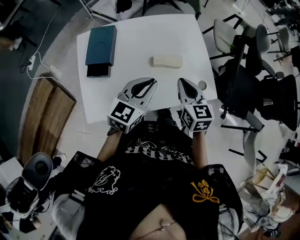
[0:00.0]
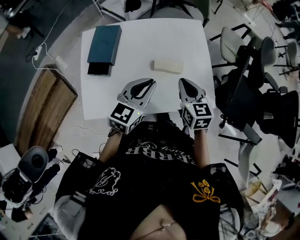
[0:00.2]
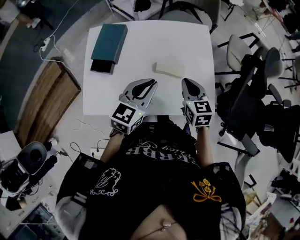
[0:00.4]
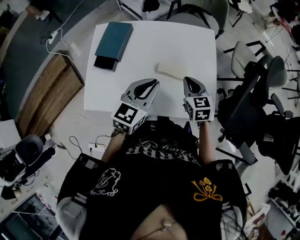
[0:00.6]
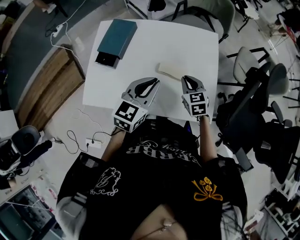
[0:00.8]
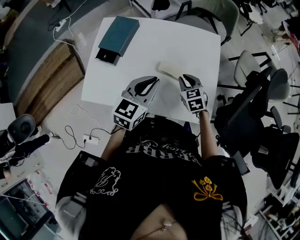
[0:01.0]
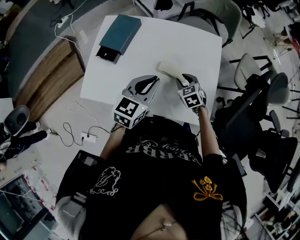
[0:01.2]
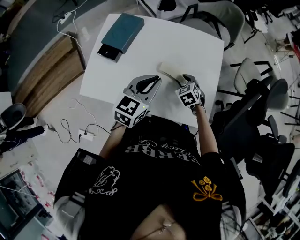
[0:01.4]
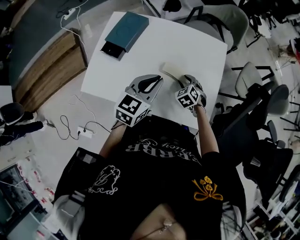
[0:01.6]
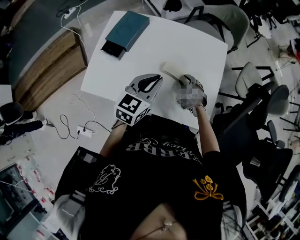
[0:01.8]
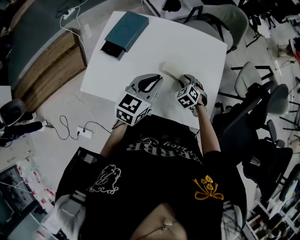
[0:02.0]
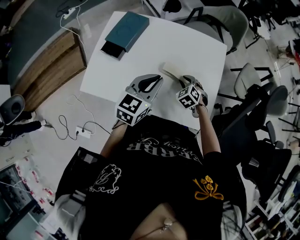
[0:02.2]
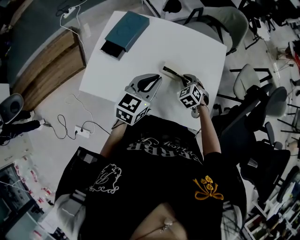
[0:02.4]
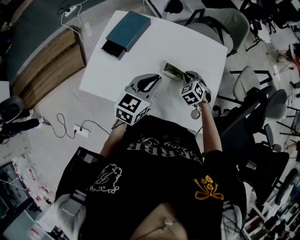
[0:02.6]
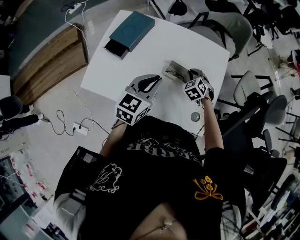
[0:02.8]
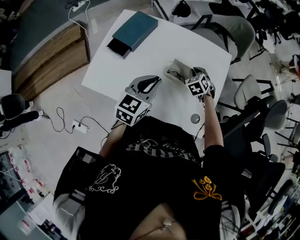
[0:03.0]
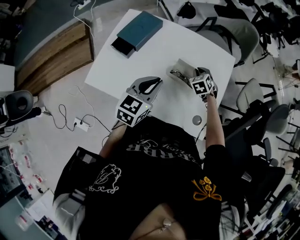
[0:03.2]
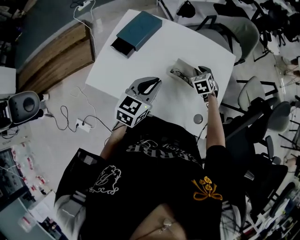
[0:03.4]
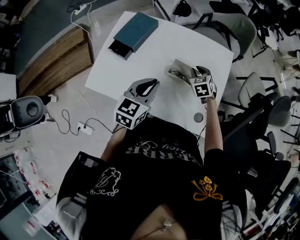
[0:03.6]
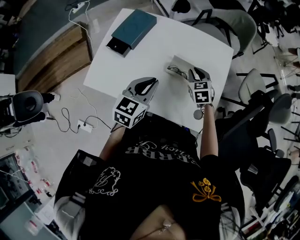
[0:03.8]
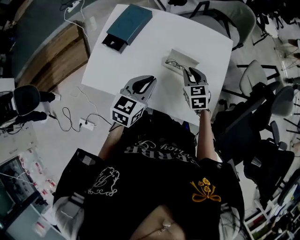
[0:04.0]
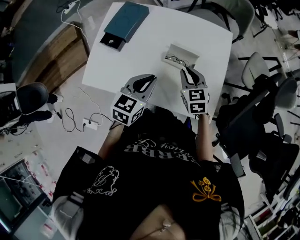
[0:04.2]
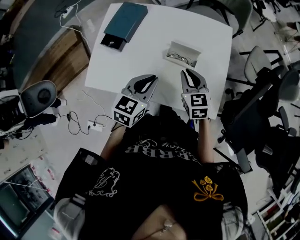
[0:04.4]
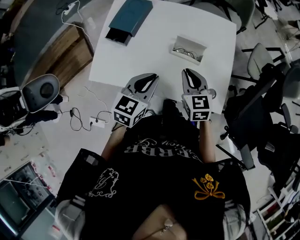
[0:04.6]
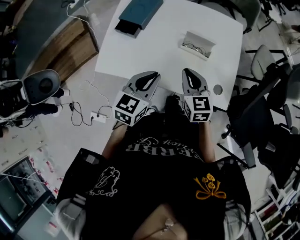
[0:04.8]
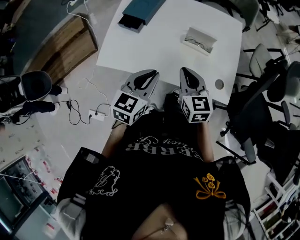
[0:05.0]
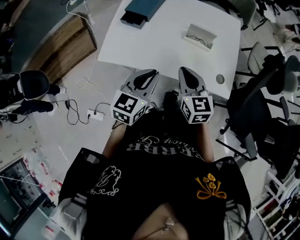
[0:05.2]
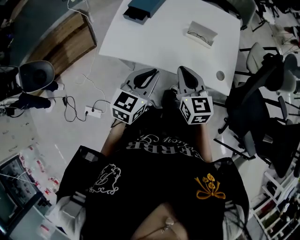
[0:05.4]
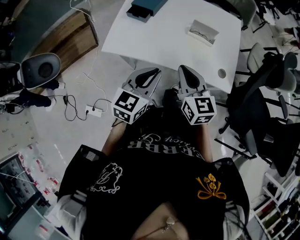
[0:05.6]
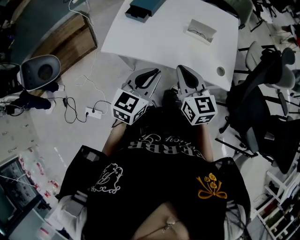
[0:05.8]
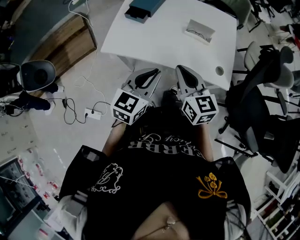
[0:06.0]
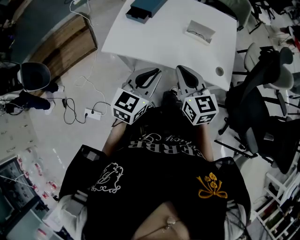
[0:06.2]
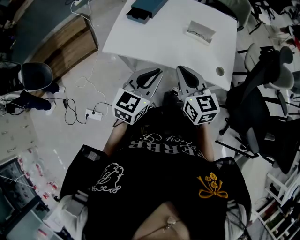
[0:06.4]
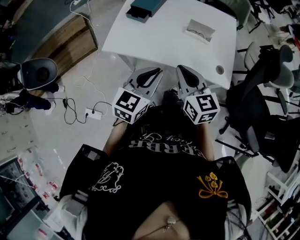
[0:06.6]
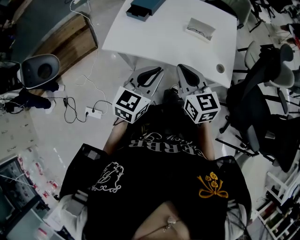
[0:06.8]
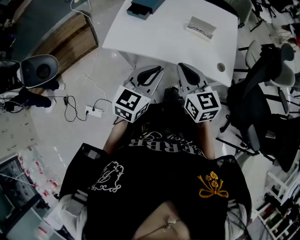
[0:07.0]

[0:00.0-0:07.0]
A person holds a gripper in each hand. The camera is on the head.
0:00.0 to 0:01.4: The right gripper shifts approximately 20 cm downward, turns by roughly 50 degrees, and opens; the left gripper moves approximately 5 cm, and rotates about 30 degrees.
0:01.4 to 0:02.8: The right gripper moves forward, some 5 cm, and closes up.
0:02.8 to 0:04.2: The right gripper moves backward and upward, about 15 cm, and swivels approximately 40 degrees.
0:04.2 to 0:05.6: The grippers both shift backward and to the left by about 25 cm.
0:05.6 to 0:07.0: The grippers make only small movements.

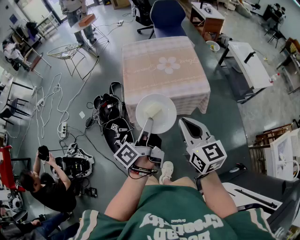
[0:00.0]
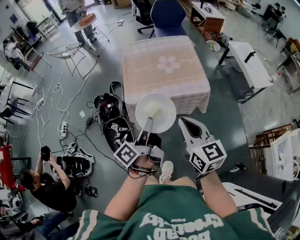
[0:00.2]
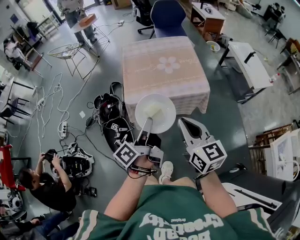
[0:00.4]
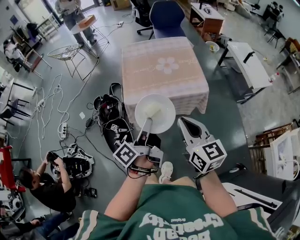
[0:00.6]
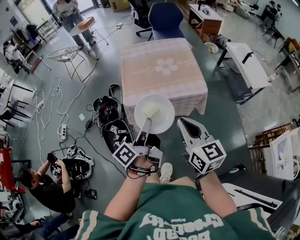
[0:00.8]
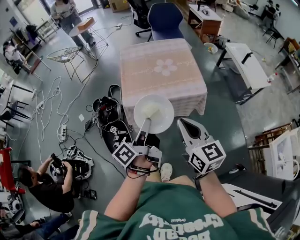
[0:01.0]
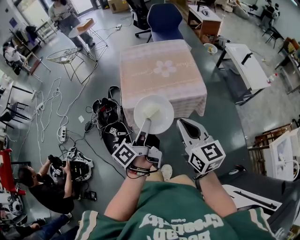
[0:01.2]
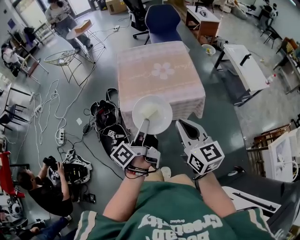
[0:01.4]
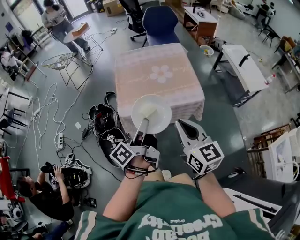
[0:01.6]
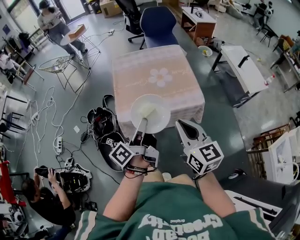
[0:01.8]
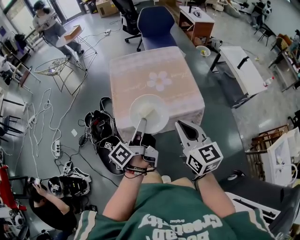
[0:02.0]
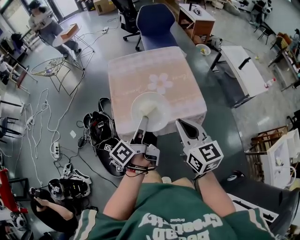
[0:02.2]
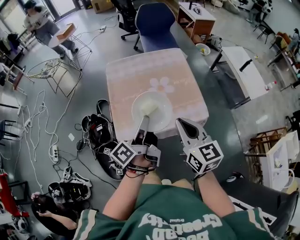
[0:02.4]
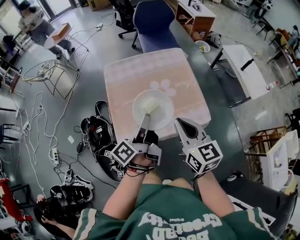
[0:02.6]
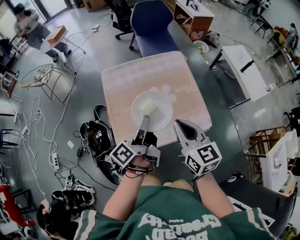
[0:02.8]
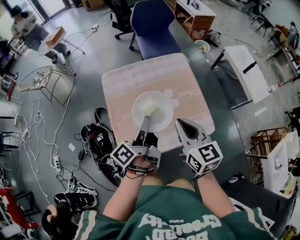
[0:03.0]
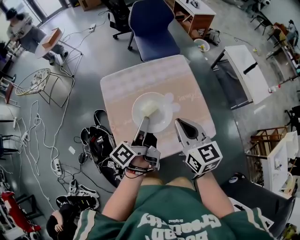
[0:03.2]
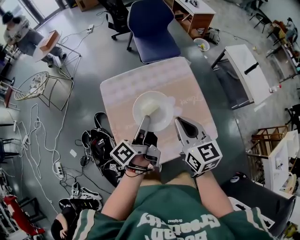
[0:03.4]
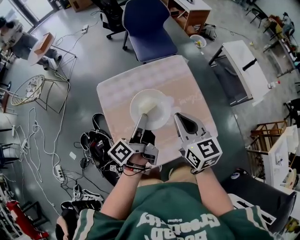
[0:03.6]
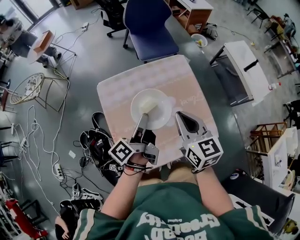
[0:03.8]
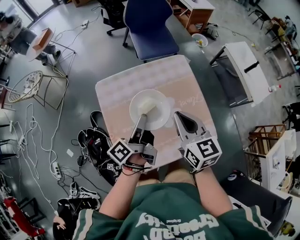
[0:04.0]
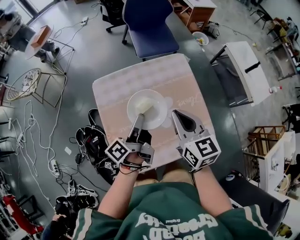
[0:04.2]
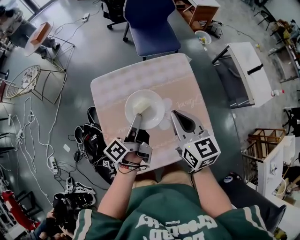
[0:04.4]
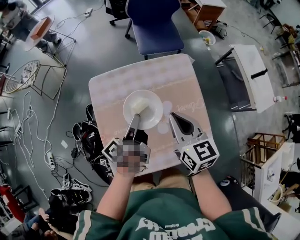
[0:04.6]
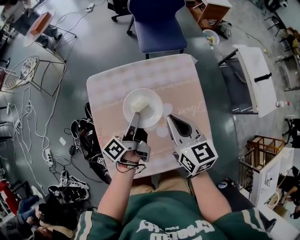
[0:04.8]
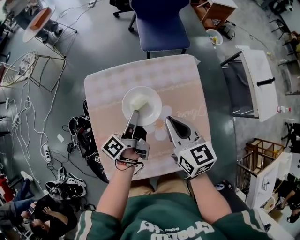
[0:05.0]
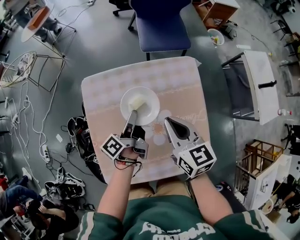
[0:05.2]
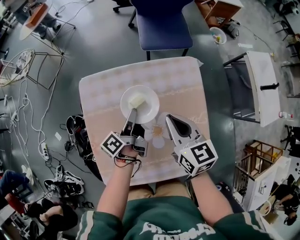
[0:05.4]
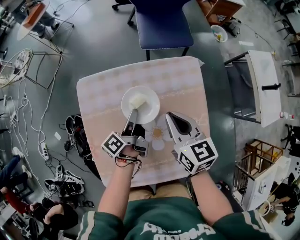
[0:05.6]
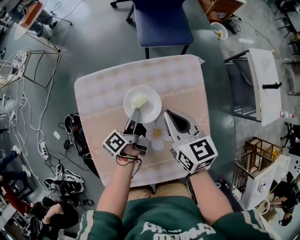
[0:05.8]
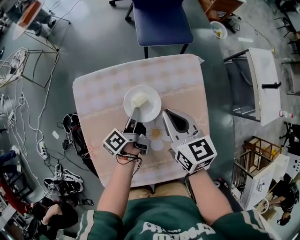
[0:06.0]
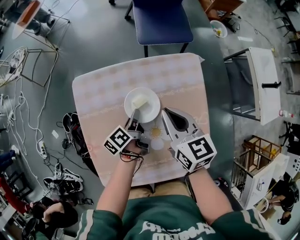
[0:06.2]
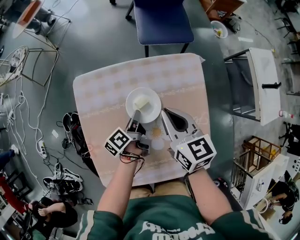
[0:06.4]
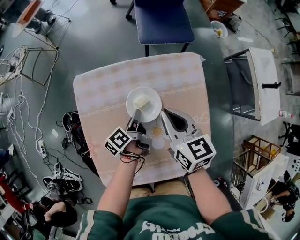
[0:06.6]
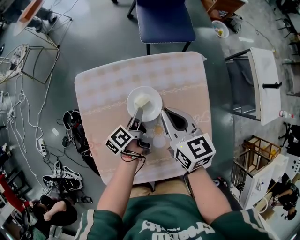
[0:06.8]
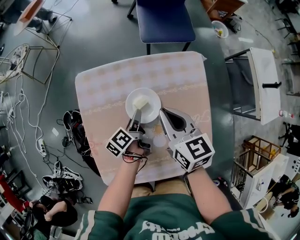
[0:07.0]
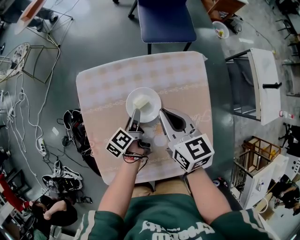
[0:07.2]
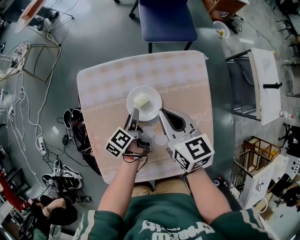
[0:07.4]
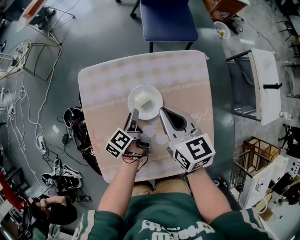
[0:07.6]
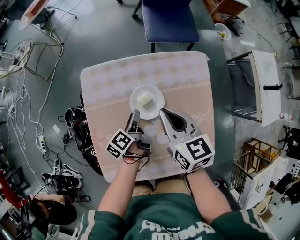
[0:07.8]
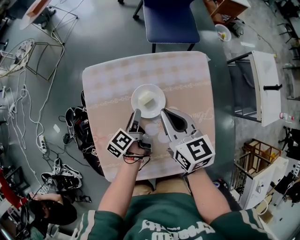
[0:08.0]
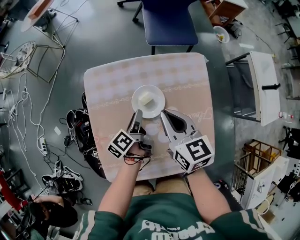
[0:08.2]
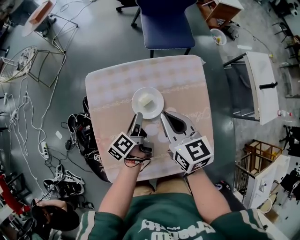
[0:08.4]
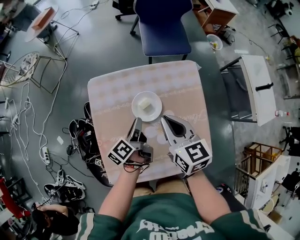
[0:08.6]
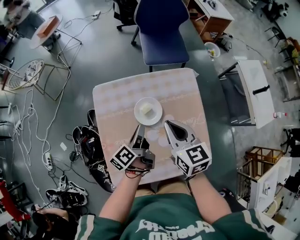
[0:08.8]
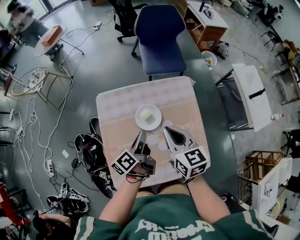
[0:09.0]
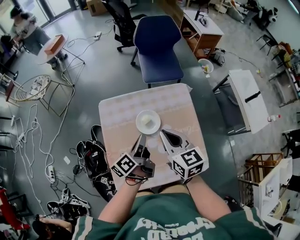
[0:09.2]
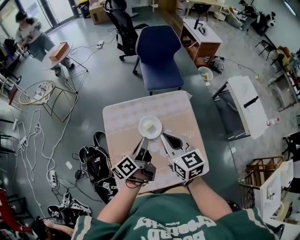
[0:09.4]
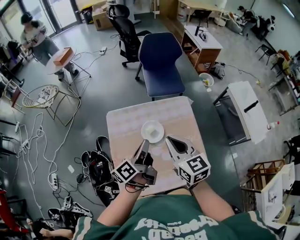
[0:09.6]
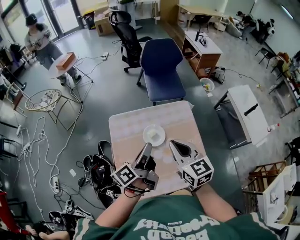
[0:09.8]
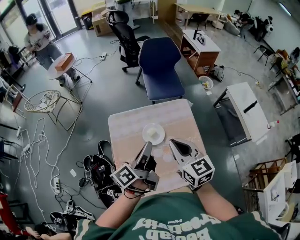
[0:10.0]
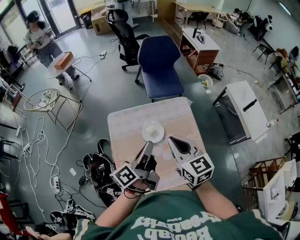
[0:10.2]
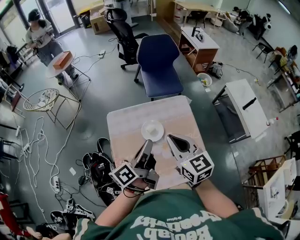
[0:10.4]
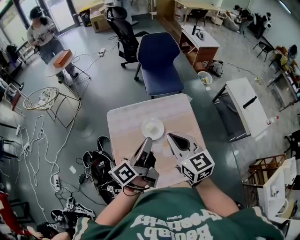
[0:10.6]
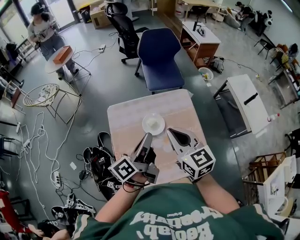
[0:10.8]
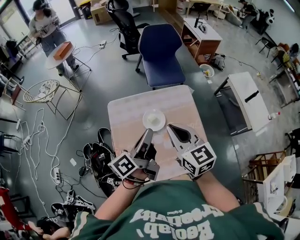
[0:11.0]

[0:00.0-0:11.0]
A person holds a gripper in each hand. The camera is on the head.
0:01.6 to 0:03.2: The right gripper changes place by approximately 35 cm.
0:03.2 to 0:04.8: The right gripper moves some 15 cm.
0:04.8 to 0:06.2: The right gripper shifts by about 10 cm.
0:06.2 to 0:07.8: The right gripper changes place by about 5 cm.
0:07.8 to 0:09.4: The right gripper shifts approximately 15 cm upward.
0:09.4 to 0:11.0: The right gripper shifts about 5 cm upward.

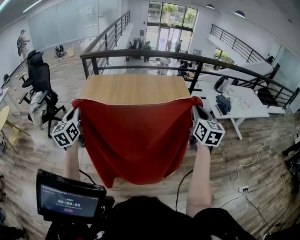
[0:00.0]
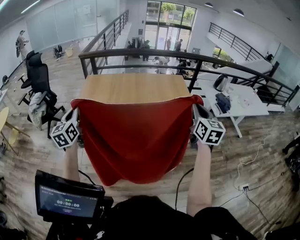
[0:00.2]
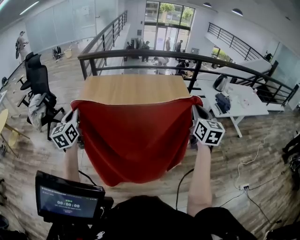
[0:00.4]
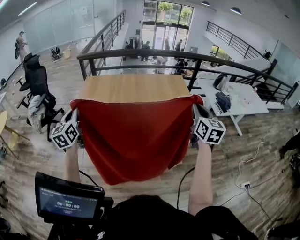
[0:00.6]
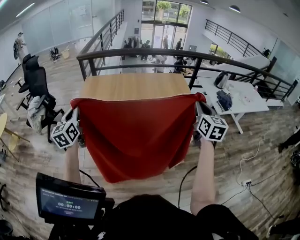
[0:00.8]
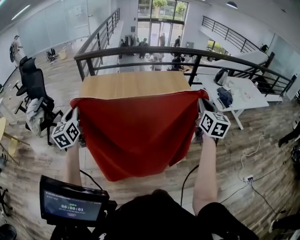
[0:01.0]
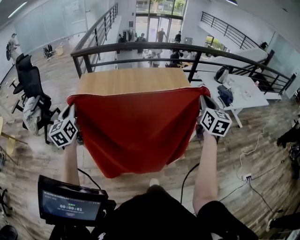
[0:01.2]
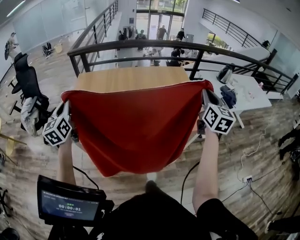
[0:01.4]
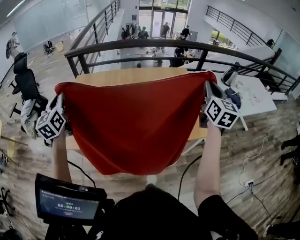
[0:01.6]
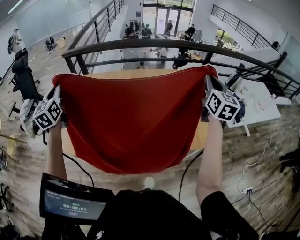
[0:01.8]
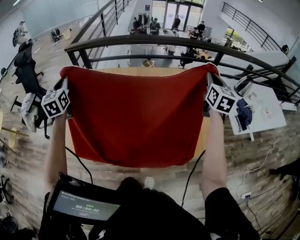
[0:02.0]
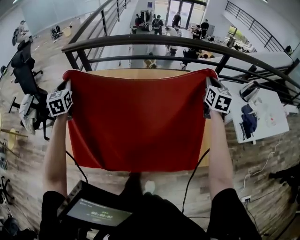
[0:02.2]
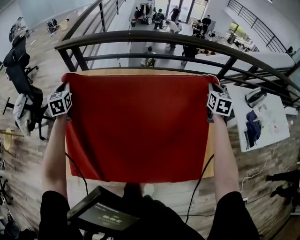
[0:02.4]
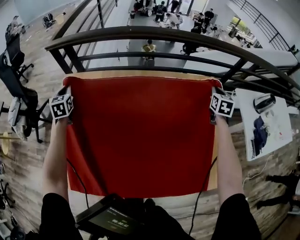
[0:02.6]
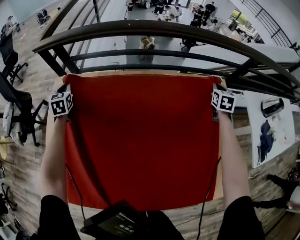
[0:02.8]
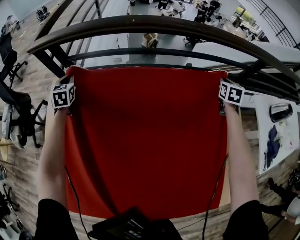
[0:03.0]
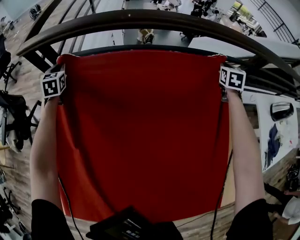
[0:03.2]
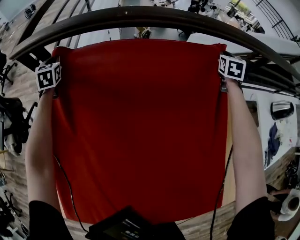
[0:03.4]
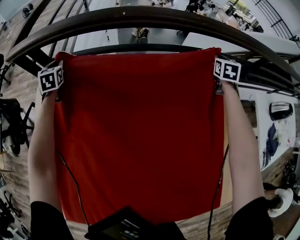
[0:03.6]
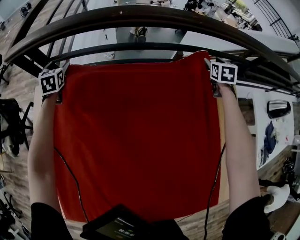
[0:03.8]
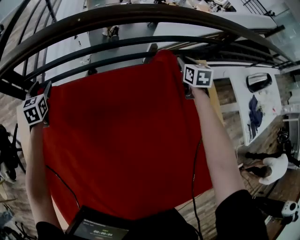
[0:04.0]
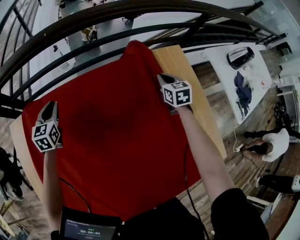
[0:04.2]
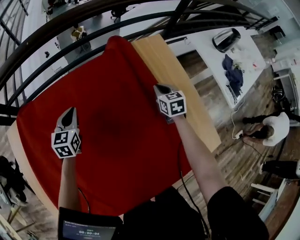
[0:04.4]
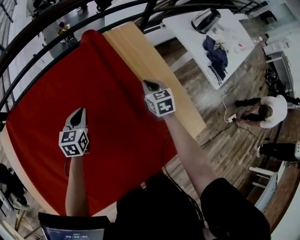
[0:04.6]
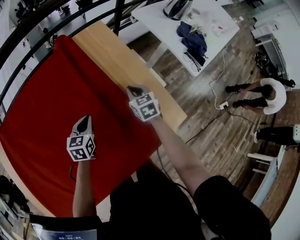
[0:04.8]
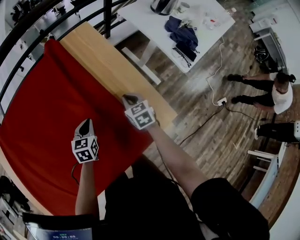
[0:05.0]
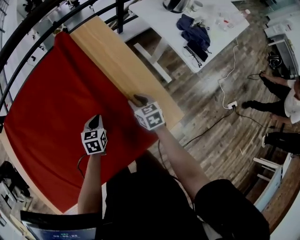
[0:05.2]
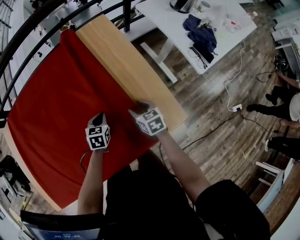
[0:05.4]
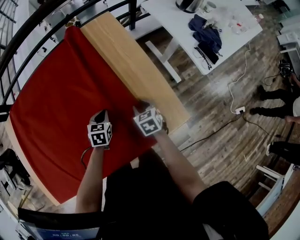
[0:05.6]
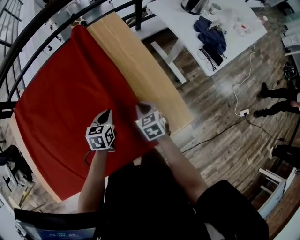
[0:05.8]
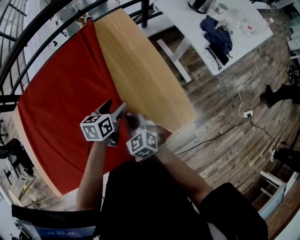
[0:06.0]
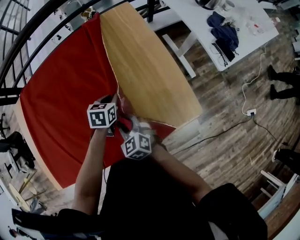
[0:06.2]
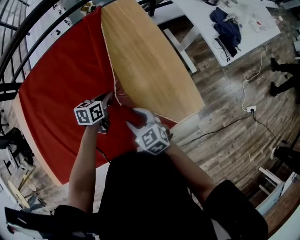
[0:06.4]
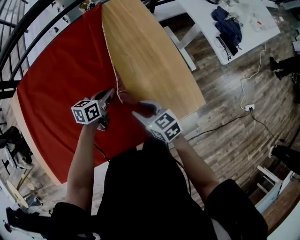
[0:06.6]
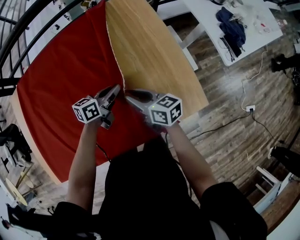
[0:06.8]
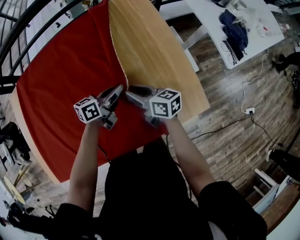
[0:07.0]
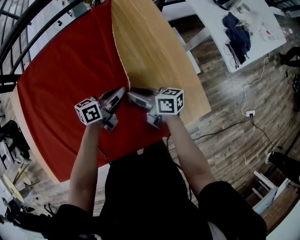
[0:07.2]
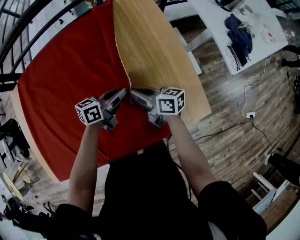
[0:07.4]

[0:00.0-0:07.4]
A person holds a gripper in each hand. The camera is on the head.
0:00.0 to 0:01.4: Both grippers move forward, about 15 cm.
0:01.4 to 0:03.0: The two grippers travel together, forward, about 80 cm. The grippers both shift downward by approximately 35 cm. The right gripper tips its fingers downward by roughly 30 degrees. The left gripper tilts its fingers some 30 degrees downward.
0:03.0 to 0:04.4: The right gripper goes roughly 25 cm backward, and opens, then closes again. Meanwhile the left gripper shifts some 35 cm to the right, swivels some 40 degrees, and opens, then closes once more.
0:04.4 to 0:06.0: The left gripper shifts some 40 cm to the right and backward, turns by roughly 30 degrees, and opens its fingers; the right gripper goes about 30 cm backward, turns by roughly 20 degrees, and opens, then closes again.
0:06.0 to 0:07.4: The right gripper is displaced forward by about 5 cm, changes its angle by roughly 60 degrees, and opens, then closes once more. The left gripper swivels some 30 degrees, and closes up.
